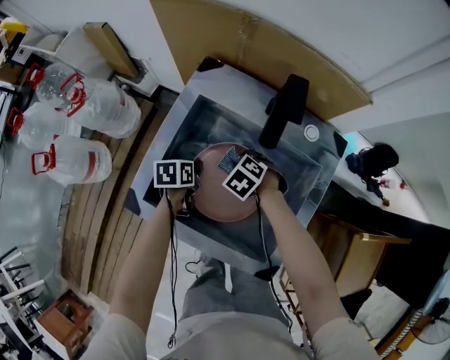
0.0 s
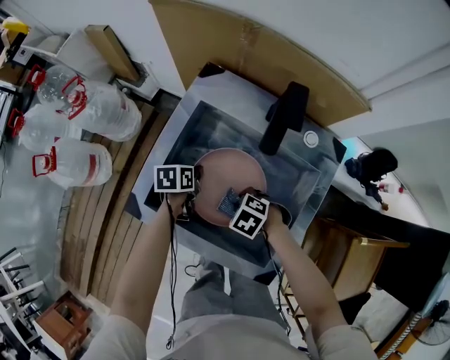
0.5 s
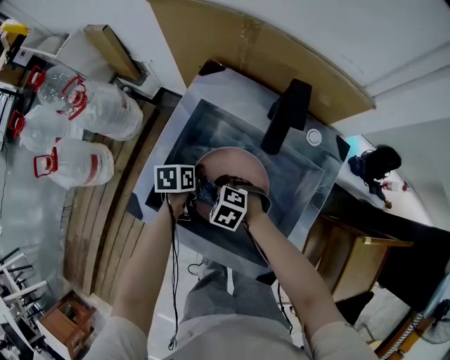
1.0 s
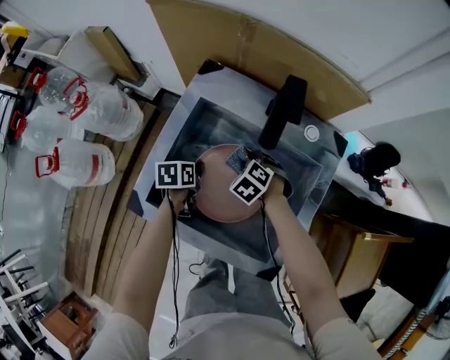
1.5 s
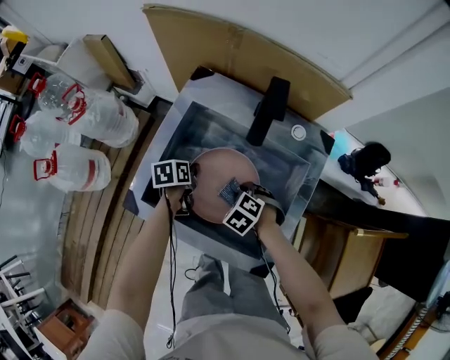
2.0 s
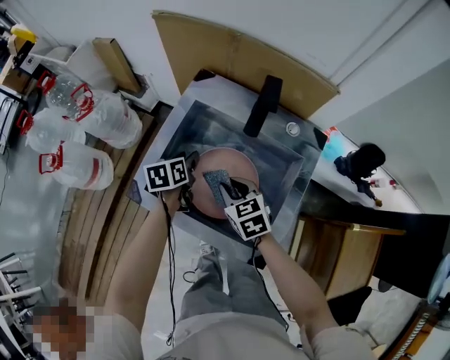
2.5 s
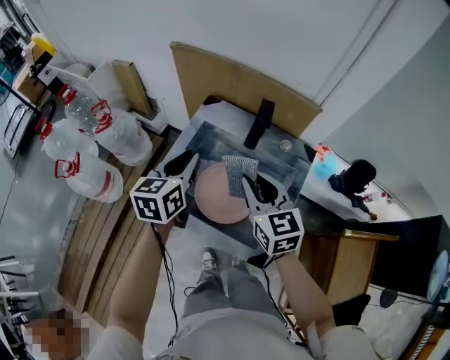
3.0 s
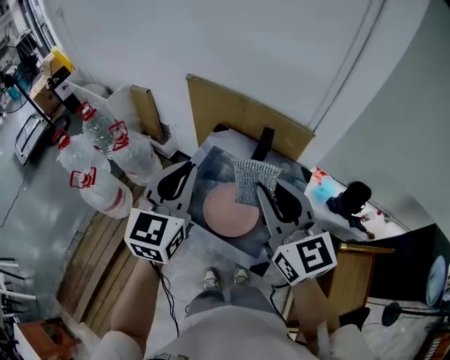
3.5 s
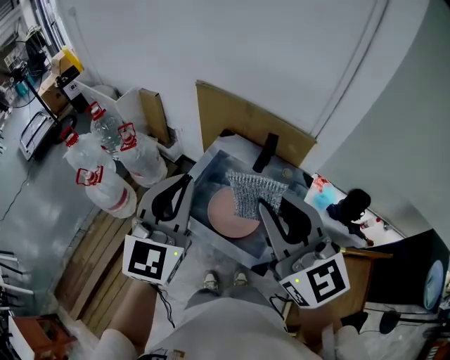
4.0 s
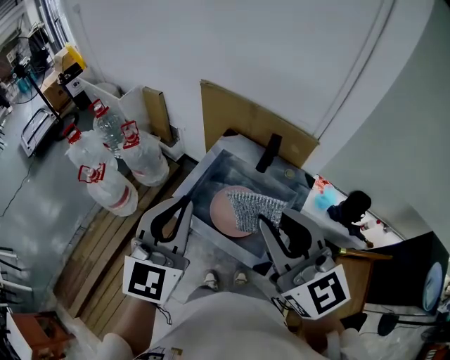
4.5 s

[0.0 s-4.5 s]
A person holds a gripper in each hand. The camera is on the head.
0.0 to 2.0 s: The right gripper shifts by roughly 10 cm.
2.0 to 4.5 s: The two grippers go approximately 60 cm upward. The left gripper points its fingers approximately 50 degrees further upward, and opens, then closes again. The right gripper angles its fingers upward, by about 80 degrees.

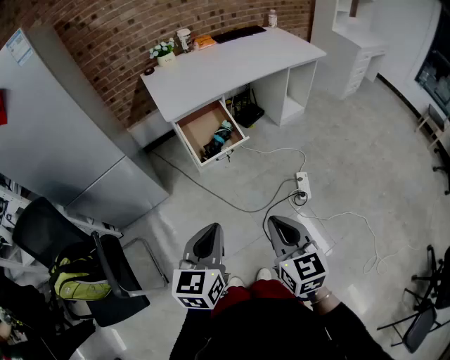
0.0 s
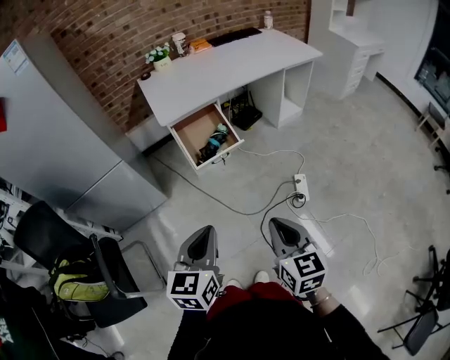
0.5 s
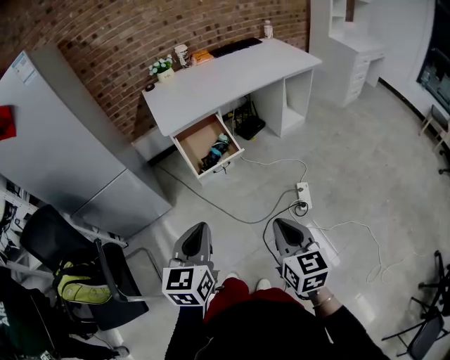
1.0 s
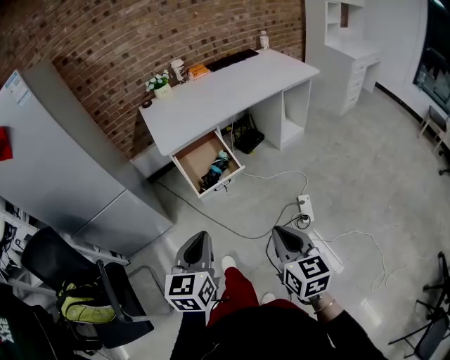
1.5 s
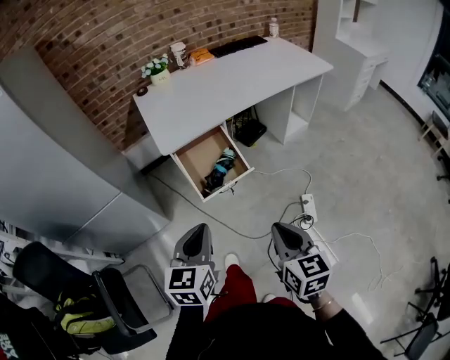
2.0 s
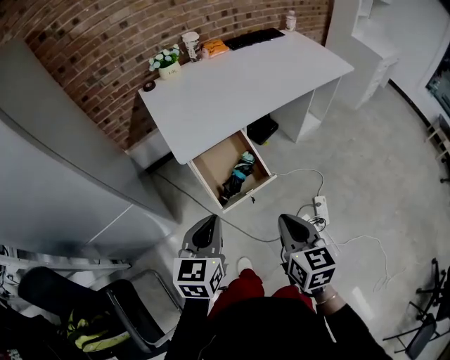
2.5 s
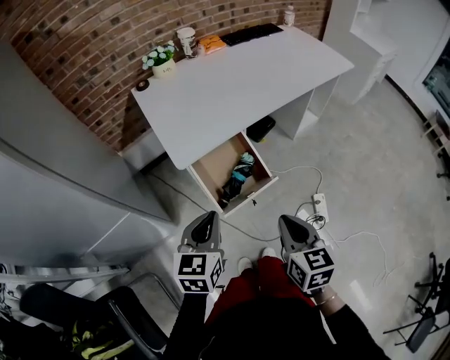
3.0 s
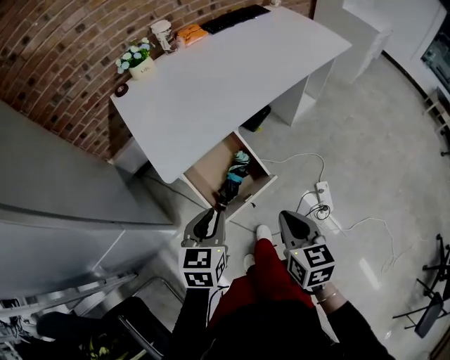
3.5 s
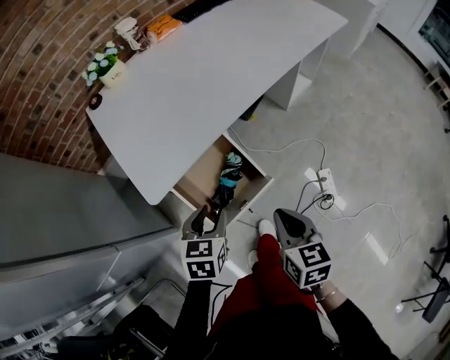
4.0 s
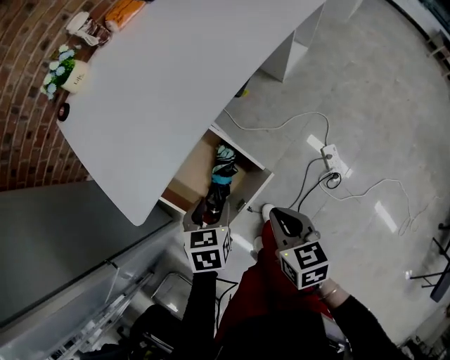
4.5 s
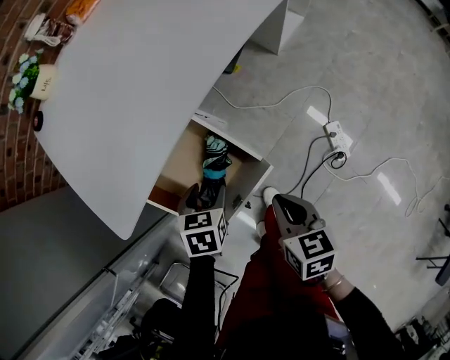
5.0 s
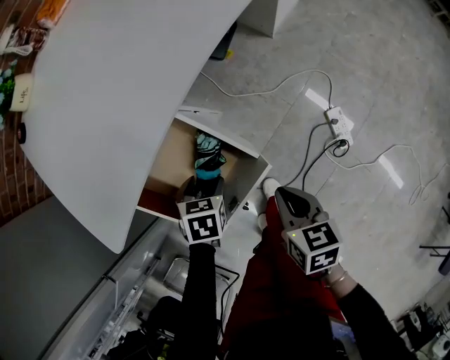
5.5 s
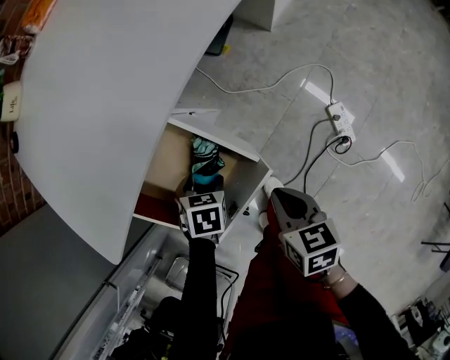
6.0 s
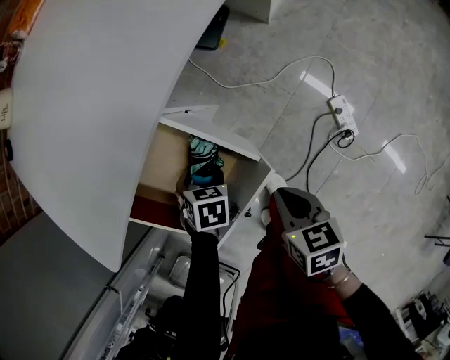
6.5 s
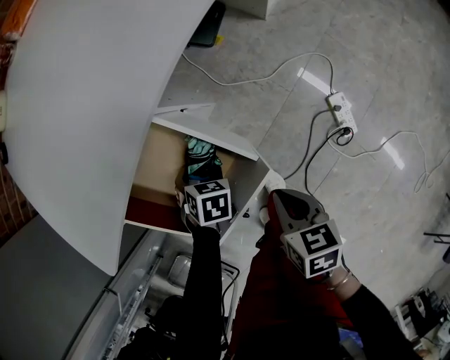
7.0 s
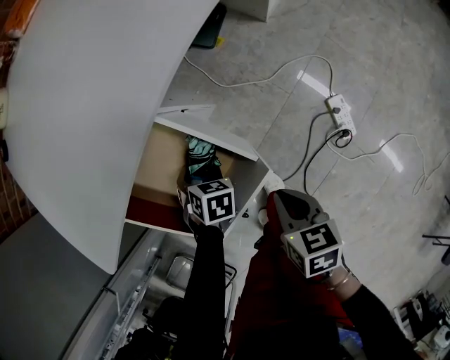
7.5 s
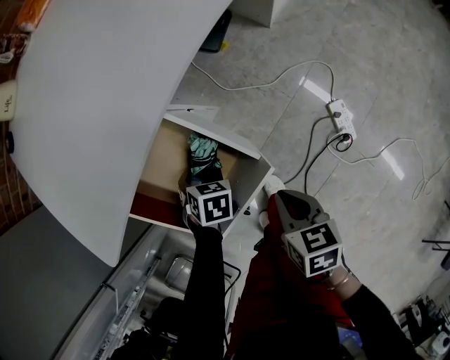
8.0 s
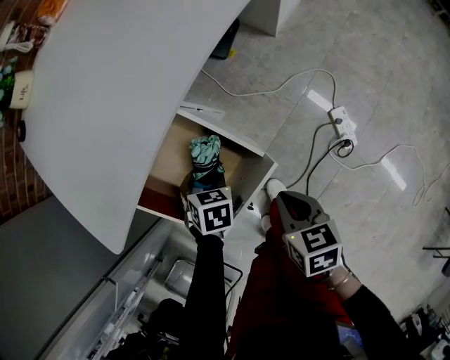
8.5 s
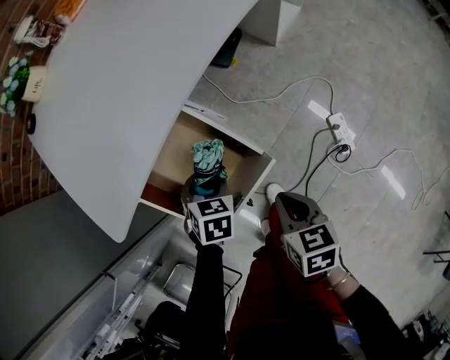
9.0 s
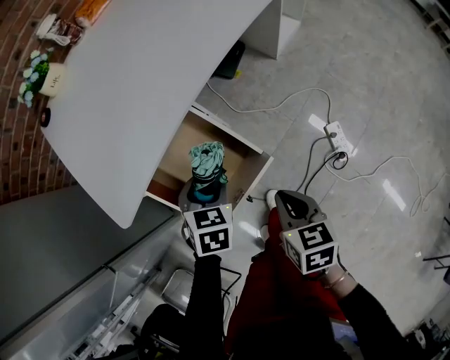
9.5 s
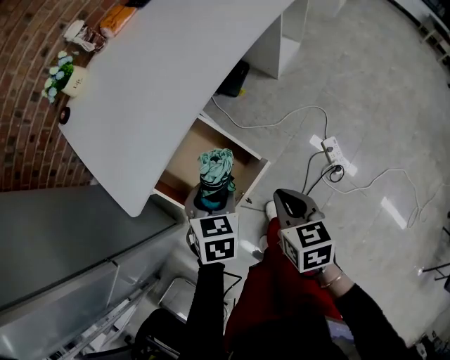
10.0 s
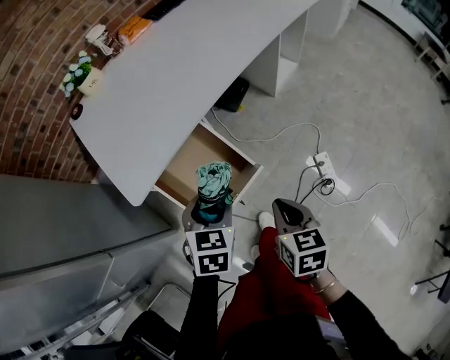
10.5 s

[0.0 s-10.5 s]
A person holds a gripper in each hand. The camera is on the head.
0.0 to 2.0 s: Both grippers travel together forward, approximately 15 cm.
2.0 to 4.0 s: Both grippers move forward and downward, approximately 30 cm. The left gripper changes its angle by roughly 30 degrees, and opens up.
4.0 to 6.5 s: The two grippers go some 25 cm downward. The right gripper changes its angle by some 20 degrees; the left gripper points its fingers roughly 30 degrees further downward, and opens.
6.5 to 8.5 s: The grippers make only small movements.
8.5 to 10.5 s: The left gripper goes about 25 cm upward and backward, and swivels approximately 20 degrees; the right gripper shifts some 15 cm upward and backward.

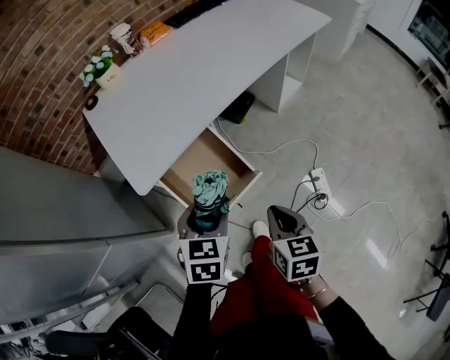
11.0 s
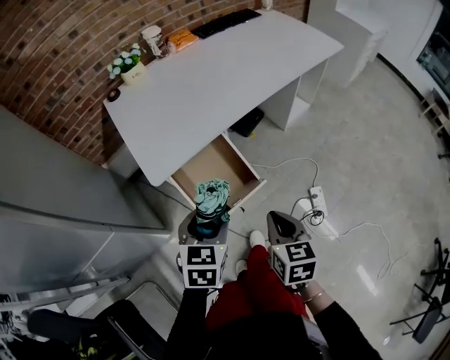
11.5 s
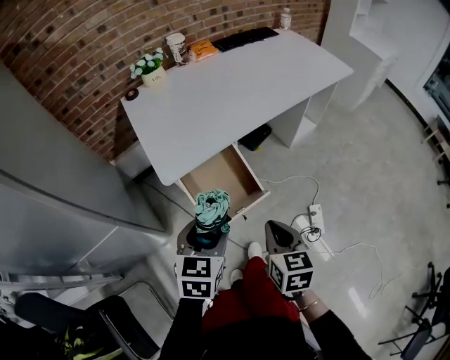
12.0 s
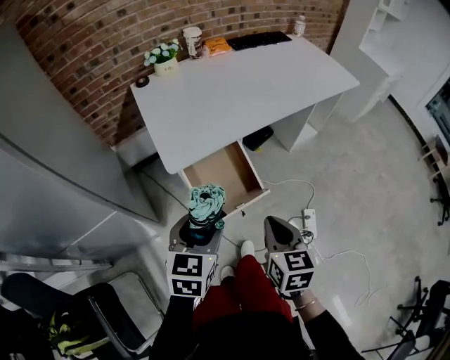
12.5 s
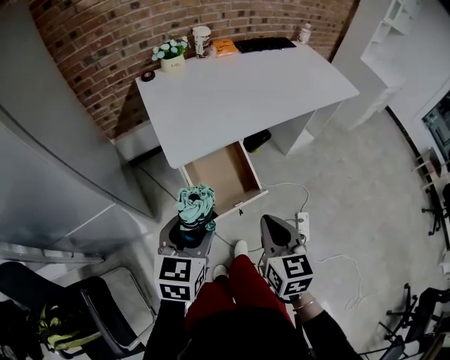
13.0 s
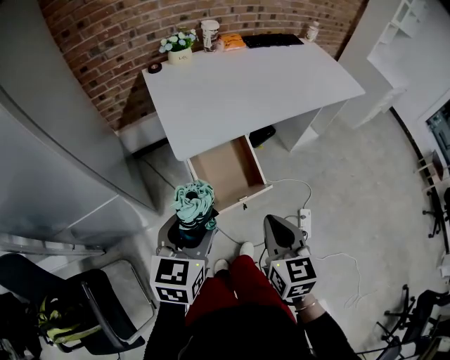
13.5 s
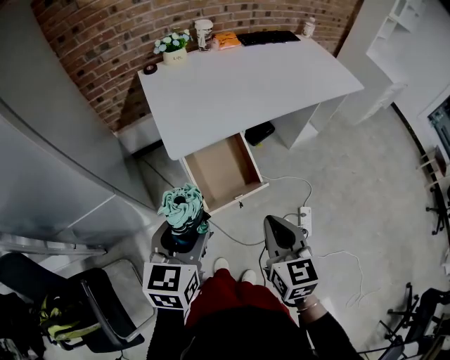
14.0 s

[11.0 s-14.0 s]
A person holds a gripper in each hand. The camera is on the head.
11.0 to 12.5 s: The left gripper travels upward, backward and to the left by some 15 cm. The right gripper heads upward and to the left, covering some 10 cm.
12.5 to 14.0 s: The left gripper moves approximately 5 cm; the right gripper ends up approximately 5 cm from where it was.

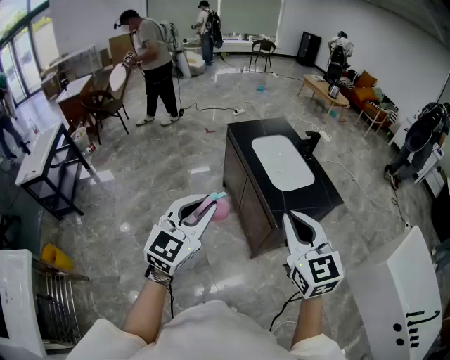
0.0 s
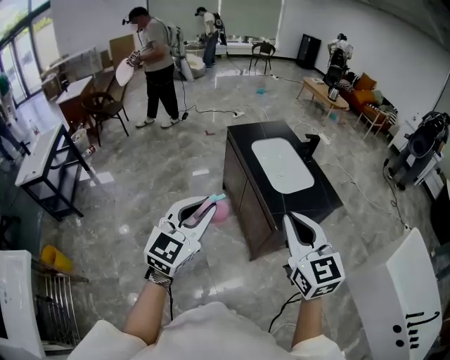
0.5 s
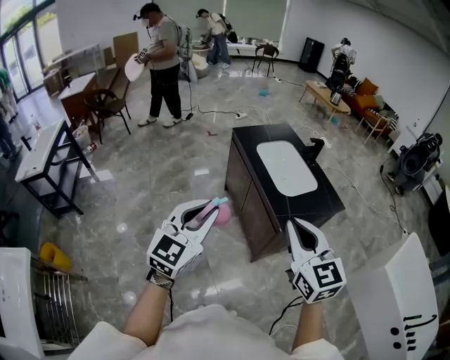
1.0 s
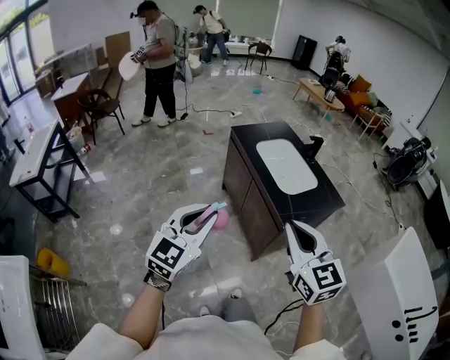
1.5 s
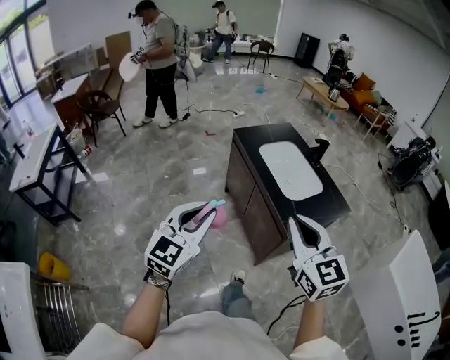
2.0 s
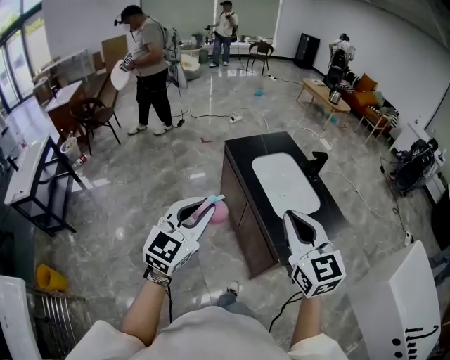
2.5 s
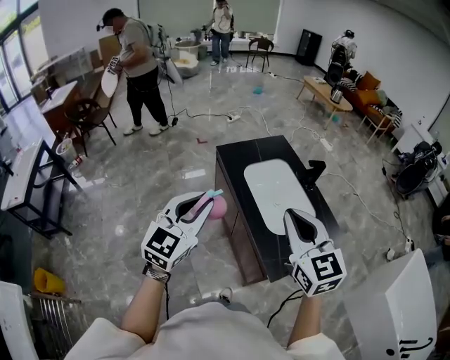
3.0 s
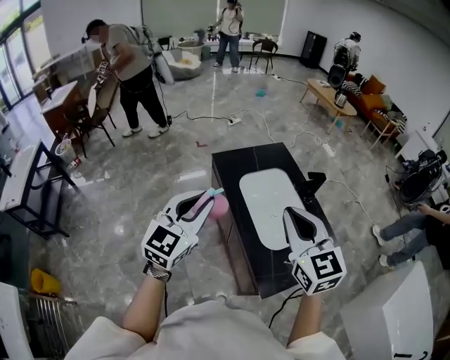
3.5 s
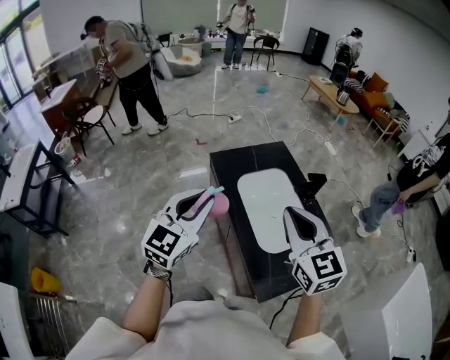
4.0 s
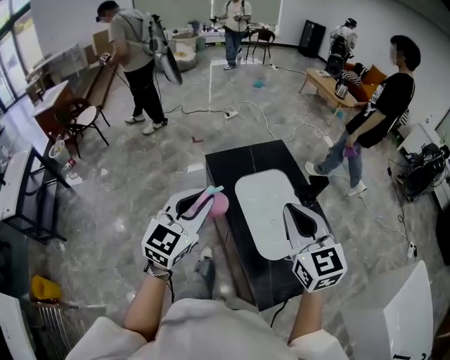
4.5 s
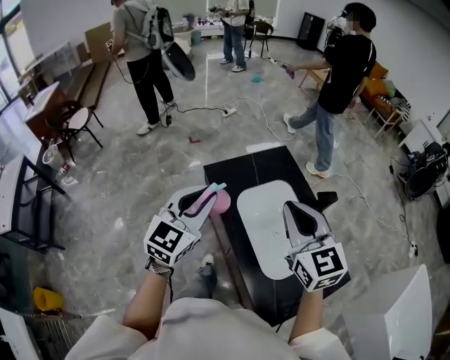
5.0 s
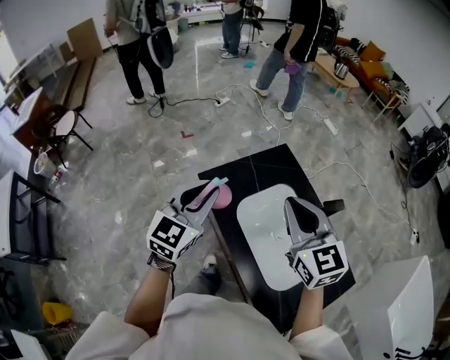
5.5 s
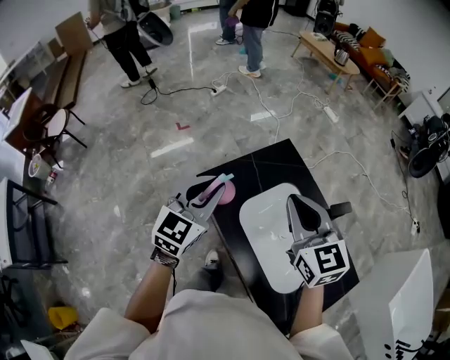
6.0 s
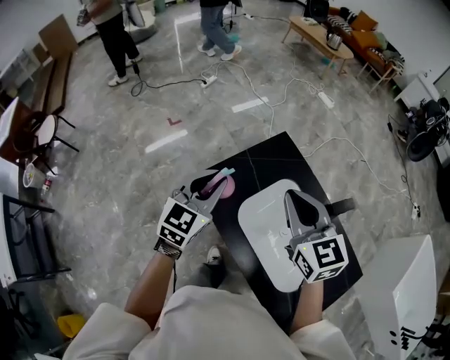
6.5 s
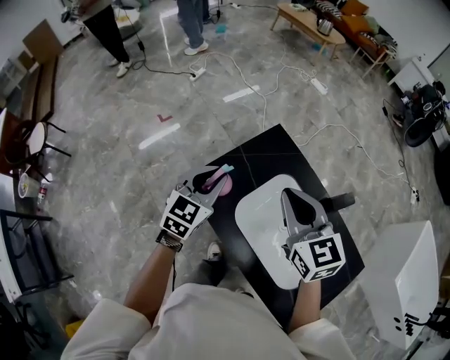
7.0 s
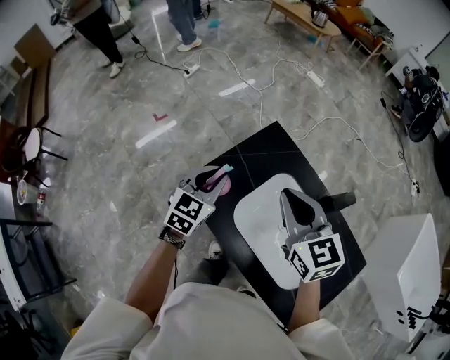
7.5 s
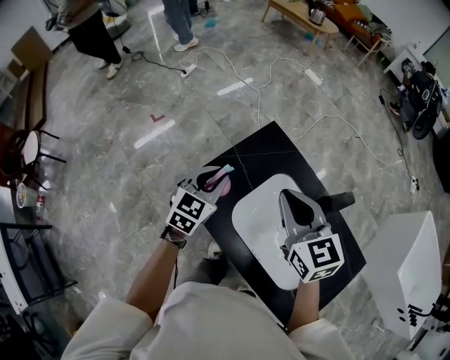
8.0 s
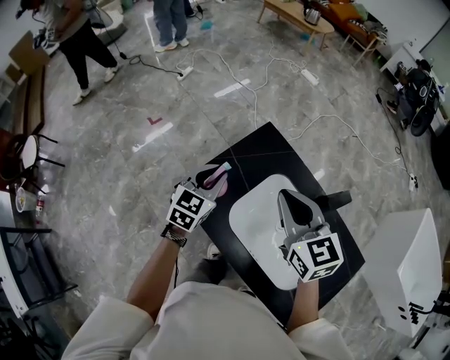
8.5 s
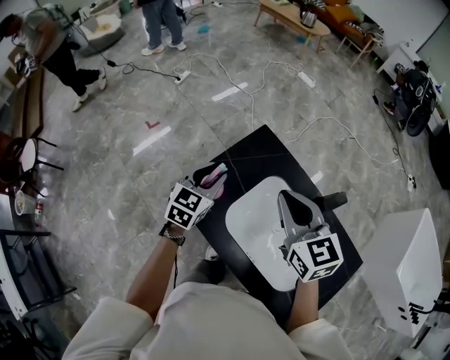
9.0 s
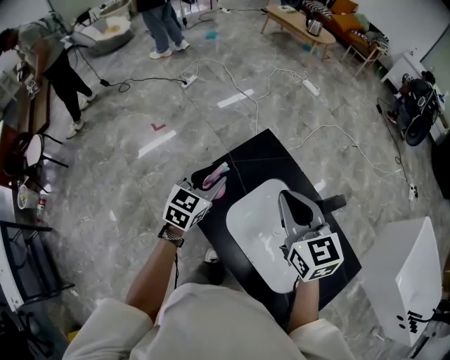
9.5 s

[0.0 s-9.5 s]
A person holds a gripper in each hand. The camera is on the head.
0.0 to 2.0 s: The right gripper shifts about 10 cm to the left and forward; the left gripper goes approximately 10 cm to the left.
2.0 to 4.0 s: Both grippers travel together forward, about 35 cm.
4.0 to 5.5 s: The two grippers go about 30 cm forward.
5.5 to 7.5 s: The right gripper is displaced forward and downward by about 15 cm. The left gripper travels forward and downward by roughly 25 cm, and changes its angle by about 20 degrees.
7.5 to 9.5 s: The left gripper opens.
